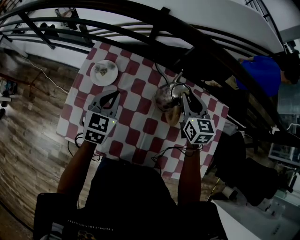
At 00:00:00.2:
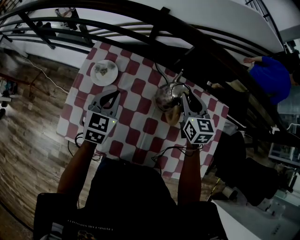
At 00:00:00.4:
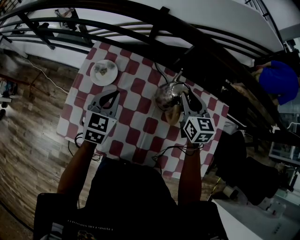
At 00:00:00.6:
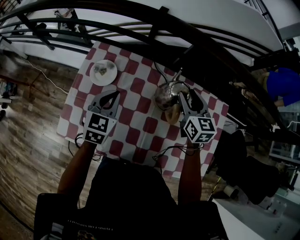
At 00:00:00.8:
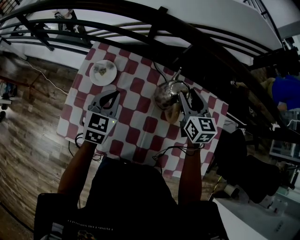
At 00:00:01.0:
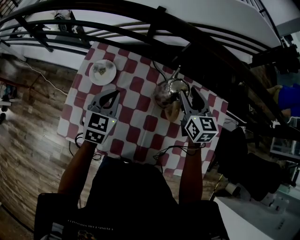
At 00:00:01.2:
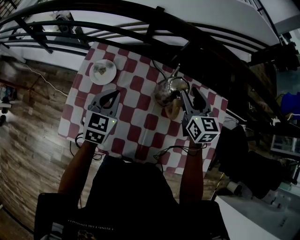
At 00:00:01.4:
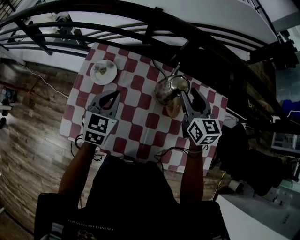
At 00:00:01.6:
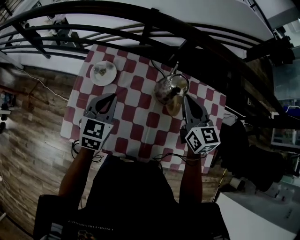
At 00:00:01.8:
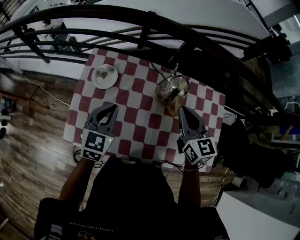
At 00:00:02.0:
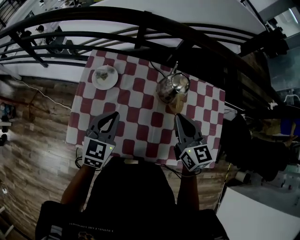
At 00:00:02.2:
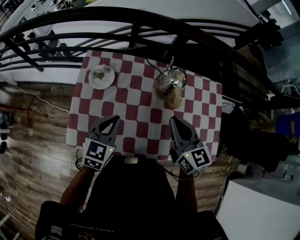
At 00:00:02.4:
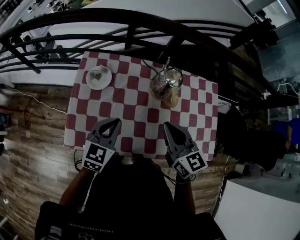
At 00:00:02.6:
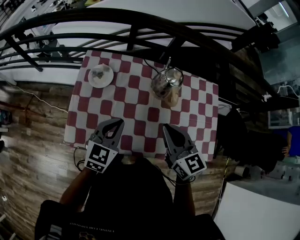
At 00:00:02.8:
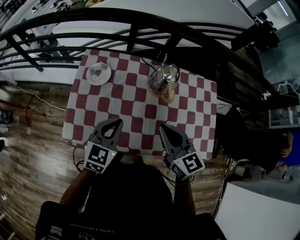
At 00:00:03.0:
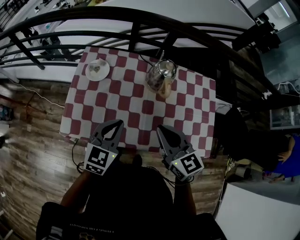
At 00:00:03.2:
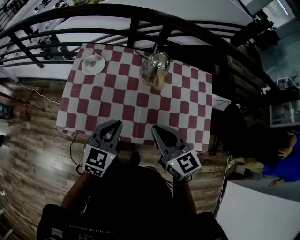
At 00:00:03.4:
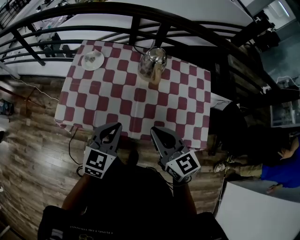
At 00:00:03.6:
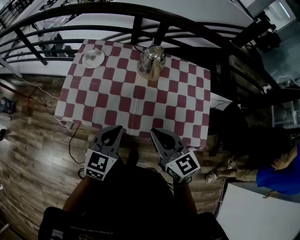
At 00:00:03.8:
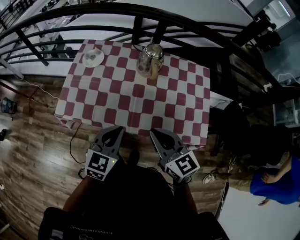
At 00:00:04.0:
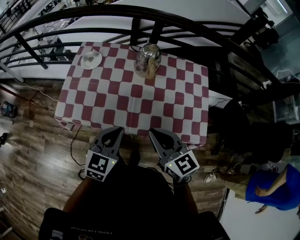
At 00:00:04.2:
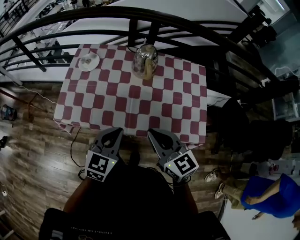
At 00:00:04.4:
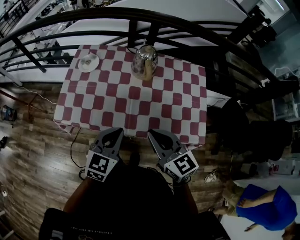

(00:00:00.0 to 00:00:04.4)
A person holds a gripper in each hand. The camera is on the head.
00:00:00.0 - 00:00:01.4: The right gripper ends up some 5 cm from where it was, and opens its fingers.
00:00:01.4 - 00:00:03.0: The grippers both shift backward by some 20 cm. The right gripper closes up.
00:00:03.0 - 00:00:04.4: Both grippers move backward and to the right, roughly 15 cm.

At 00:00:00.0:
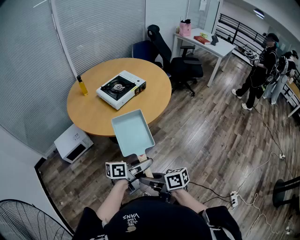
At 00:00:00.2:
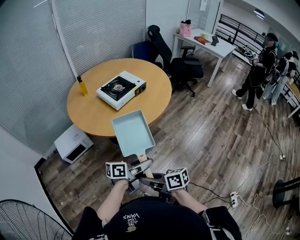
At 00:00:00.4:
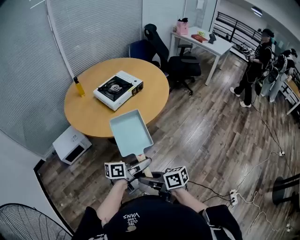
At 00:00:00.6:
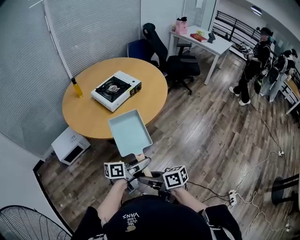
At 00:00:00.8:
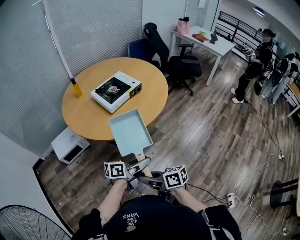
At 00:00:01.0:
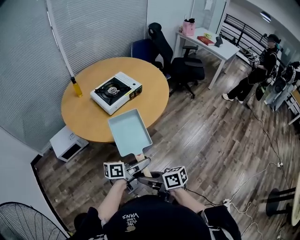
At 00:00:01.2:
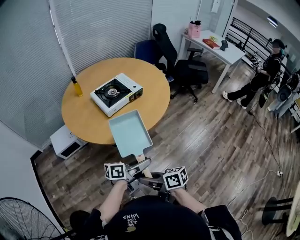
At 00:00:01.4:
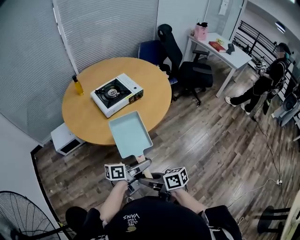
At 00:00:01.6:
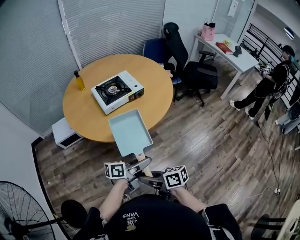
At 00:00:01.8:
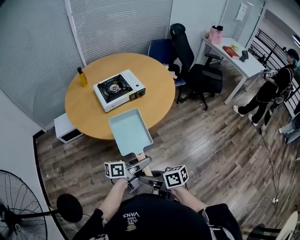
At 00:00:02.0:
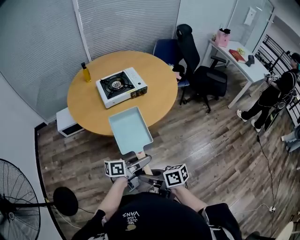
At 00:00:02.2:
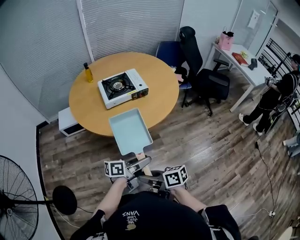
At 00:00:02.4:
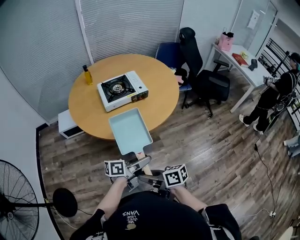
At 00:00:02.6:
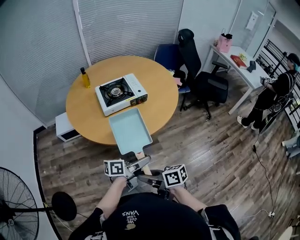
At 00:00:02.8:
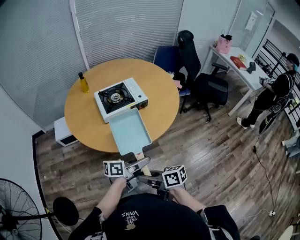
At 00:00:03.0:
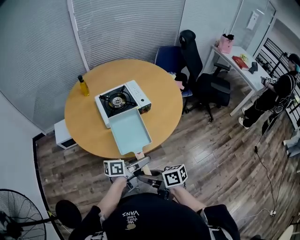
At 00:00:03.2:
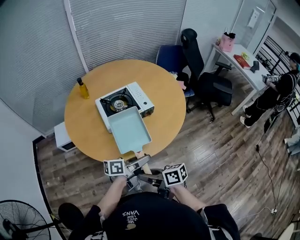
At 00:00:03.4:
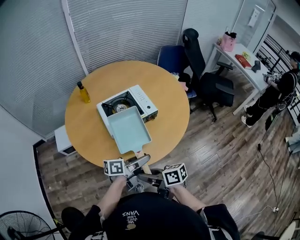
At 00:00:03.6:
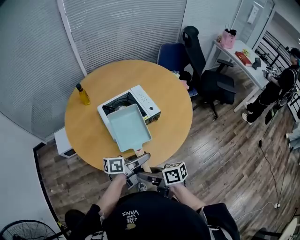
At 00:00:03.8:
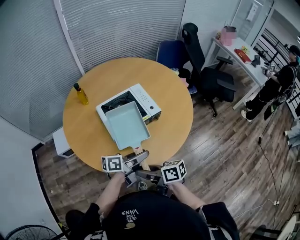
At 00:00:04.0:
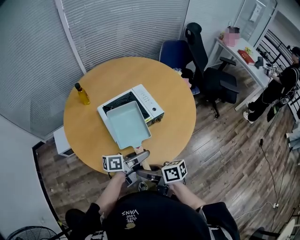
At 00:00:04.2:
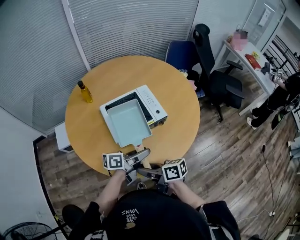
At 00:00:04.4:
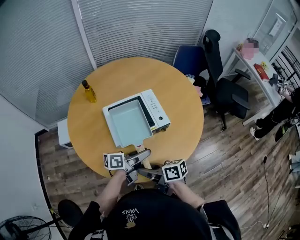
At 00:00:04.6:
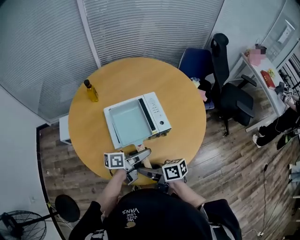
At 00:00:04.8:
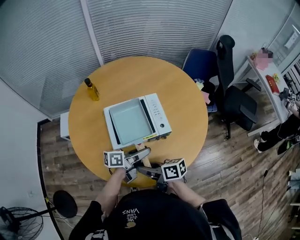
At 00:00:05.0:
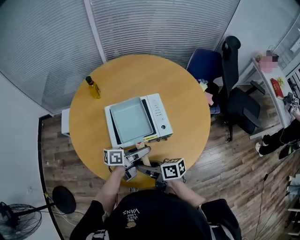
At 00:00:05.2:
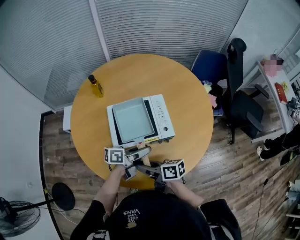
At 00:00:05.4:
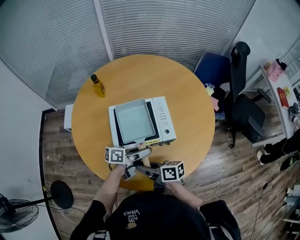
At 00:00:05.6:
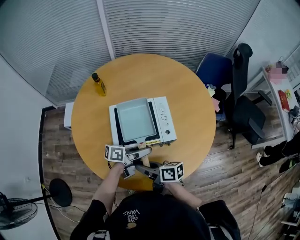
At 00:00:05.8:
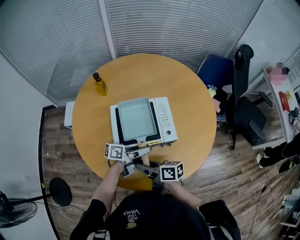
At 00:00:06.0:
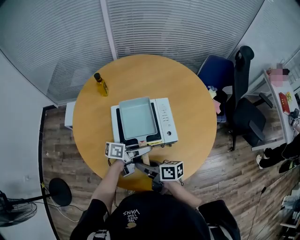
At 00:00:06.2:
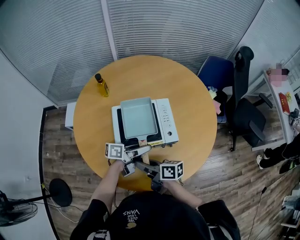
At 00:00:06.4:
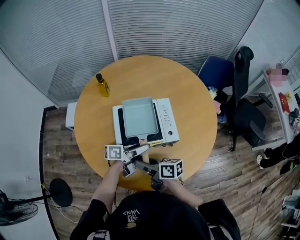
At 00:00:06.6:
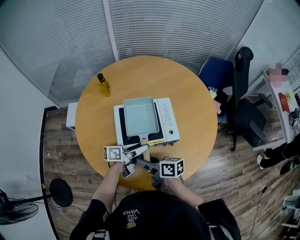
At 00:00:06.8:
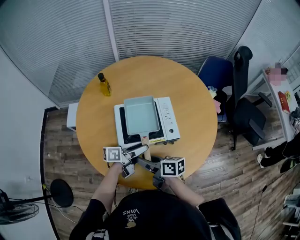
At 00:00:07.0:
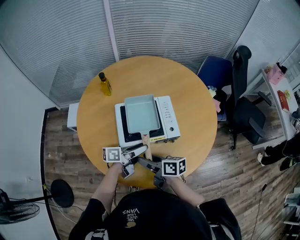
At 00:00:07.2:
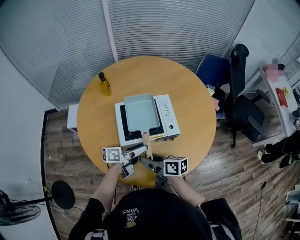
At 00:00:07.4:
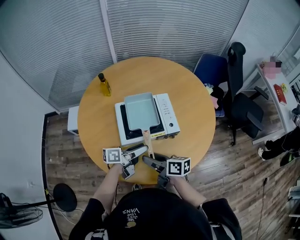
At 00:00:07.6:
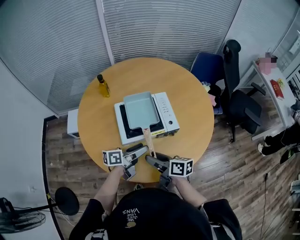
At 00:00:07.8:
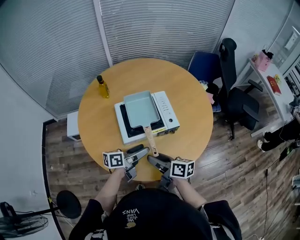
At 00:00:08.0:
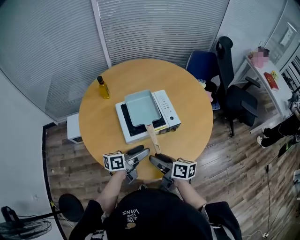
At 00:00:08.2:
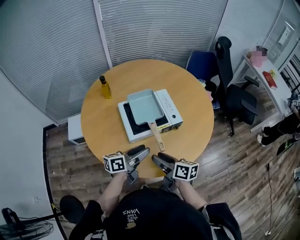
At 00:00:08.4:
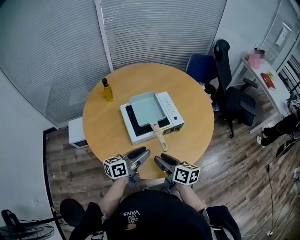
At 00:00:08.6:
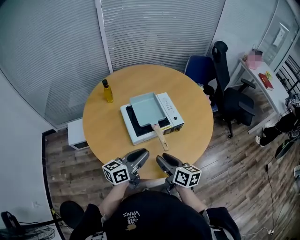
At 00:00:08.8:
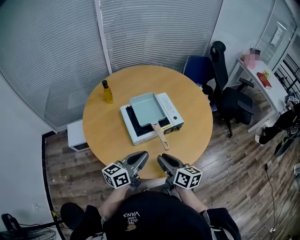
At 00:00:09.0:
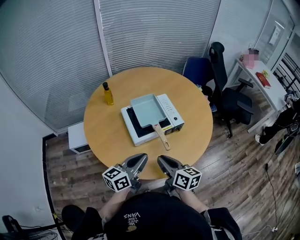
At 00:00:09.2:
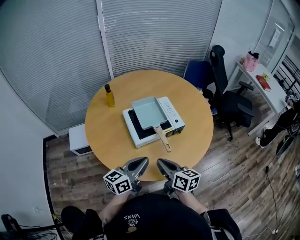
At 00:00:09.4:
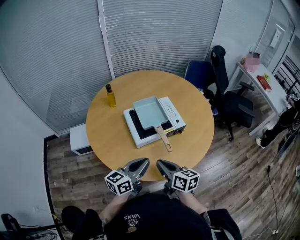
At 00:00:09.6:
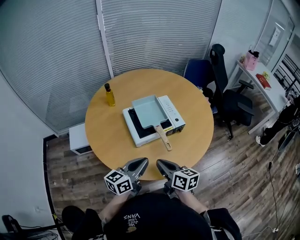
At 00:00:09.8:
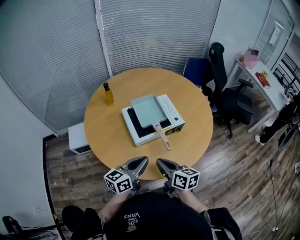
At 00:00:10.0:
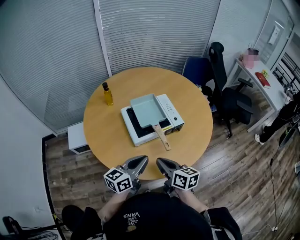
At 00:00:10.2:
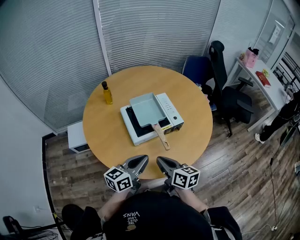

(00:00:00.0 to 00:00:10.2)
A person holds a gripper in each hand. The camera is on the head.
00:00:00.0 - 00:00:01.4: The left gripper shifts by some 15 cm; the right gripper ends up roughly 15 cm from where it was.
00:00:01.4 - 00:00:03.0: The right gripper moves approximately 15 cm. The left gripper changes place by about 15 cm.
00:00:03.0 - 00:00:04.4: The right gripper shifts by some 20 cm, while the left gripper ends up approximately 20 cm from where it was.
00:00:04.4 - 00:00:05.8: The left gripper ends up some 10 cm from where it was; the right gripper shifts by roughly 10 cm.
00:00:05.8 - 00:00:07.2: The left gripper shifts by about 5 cm.
00:00:07.2 - 00:00:08.8: The right gripper is displaced backward by roughly 5 cm, and rotates roughly 40 degrees, while the left gripper shifts roughly 15 cm backward, upward and to the left, swivels some 30 degrees, and closes.
00:00:08.8 - 00:00:10.2: The right gripper closes its fingers.

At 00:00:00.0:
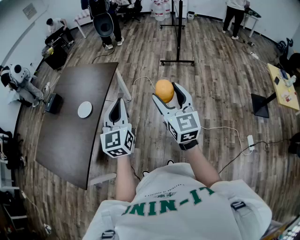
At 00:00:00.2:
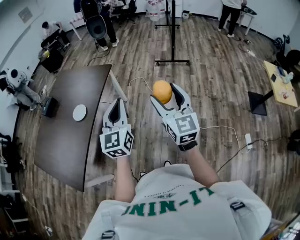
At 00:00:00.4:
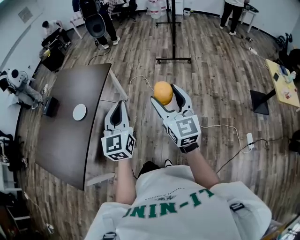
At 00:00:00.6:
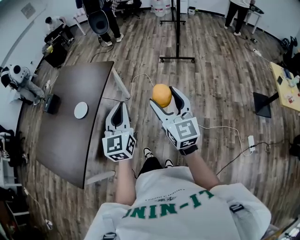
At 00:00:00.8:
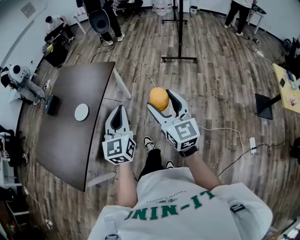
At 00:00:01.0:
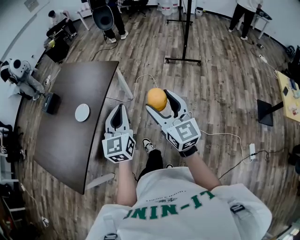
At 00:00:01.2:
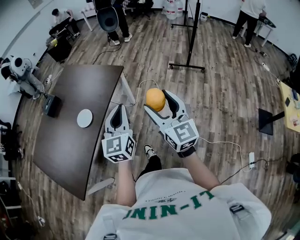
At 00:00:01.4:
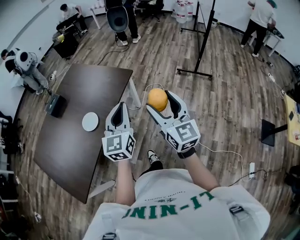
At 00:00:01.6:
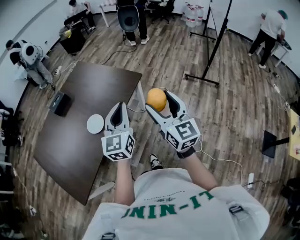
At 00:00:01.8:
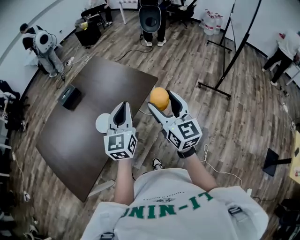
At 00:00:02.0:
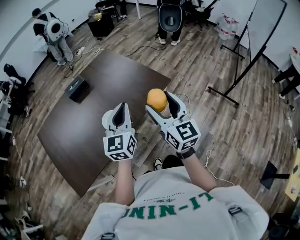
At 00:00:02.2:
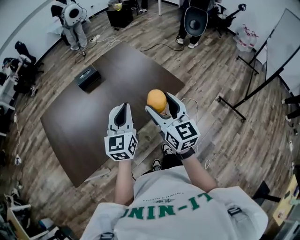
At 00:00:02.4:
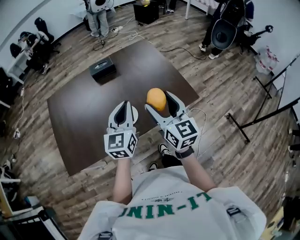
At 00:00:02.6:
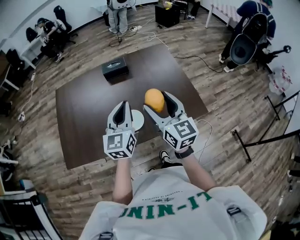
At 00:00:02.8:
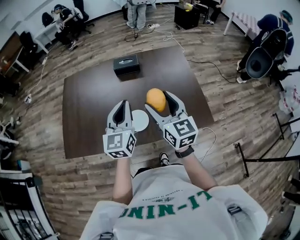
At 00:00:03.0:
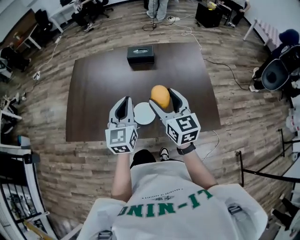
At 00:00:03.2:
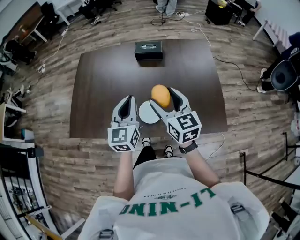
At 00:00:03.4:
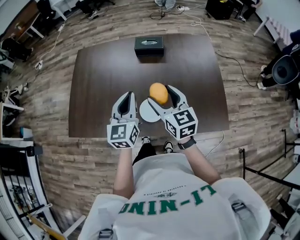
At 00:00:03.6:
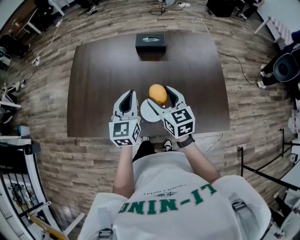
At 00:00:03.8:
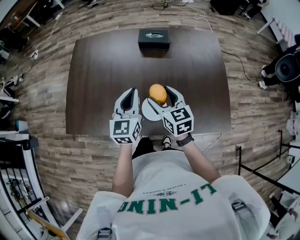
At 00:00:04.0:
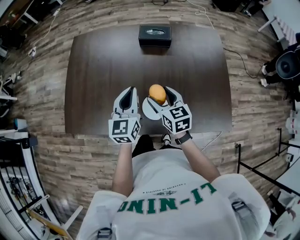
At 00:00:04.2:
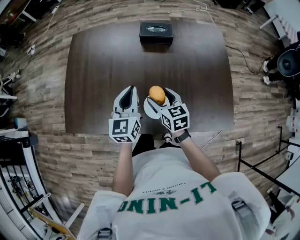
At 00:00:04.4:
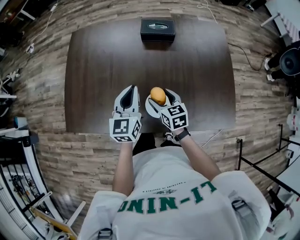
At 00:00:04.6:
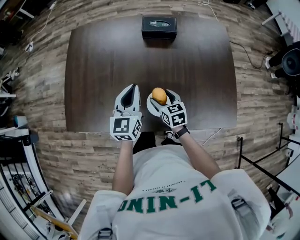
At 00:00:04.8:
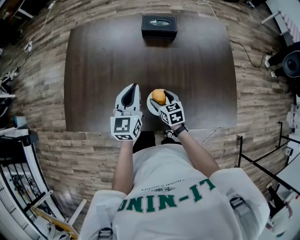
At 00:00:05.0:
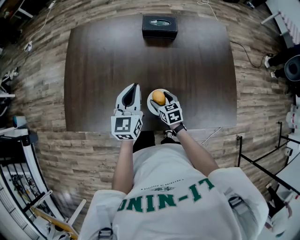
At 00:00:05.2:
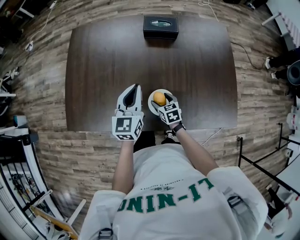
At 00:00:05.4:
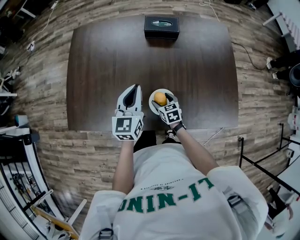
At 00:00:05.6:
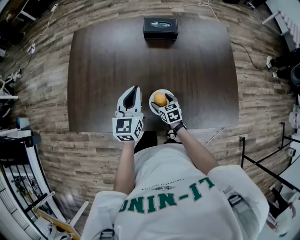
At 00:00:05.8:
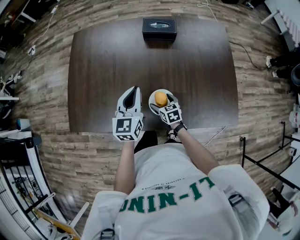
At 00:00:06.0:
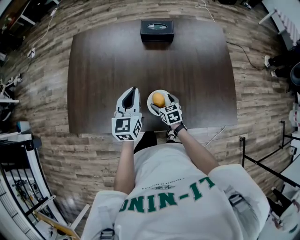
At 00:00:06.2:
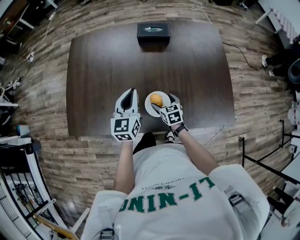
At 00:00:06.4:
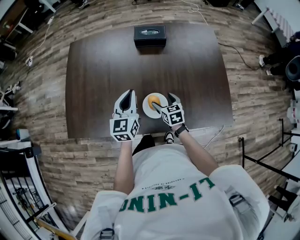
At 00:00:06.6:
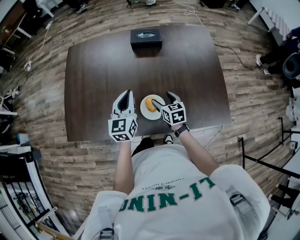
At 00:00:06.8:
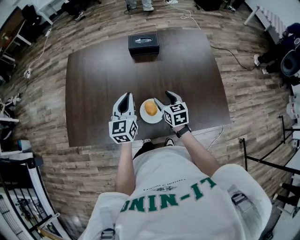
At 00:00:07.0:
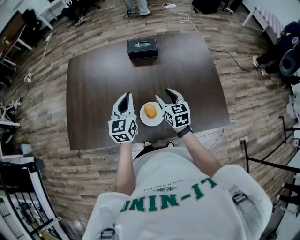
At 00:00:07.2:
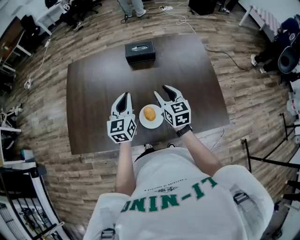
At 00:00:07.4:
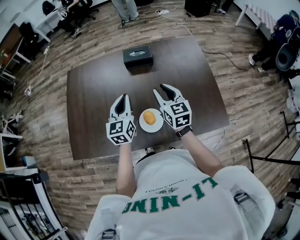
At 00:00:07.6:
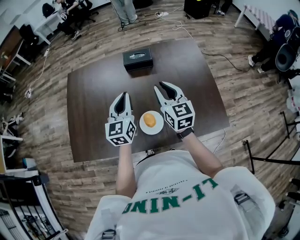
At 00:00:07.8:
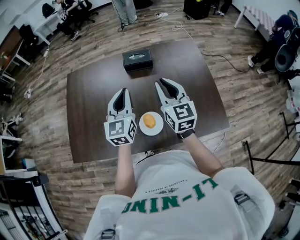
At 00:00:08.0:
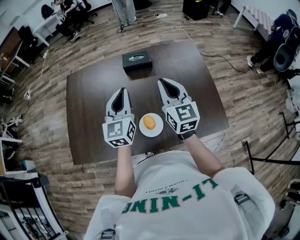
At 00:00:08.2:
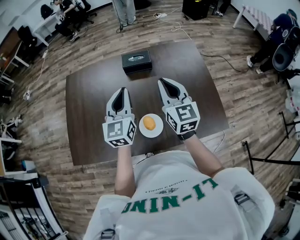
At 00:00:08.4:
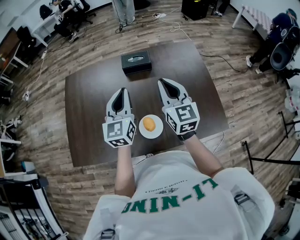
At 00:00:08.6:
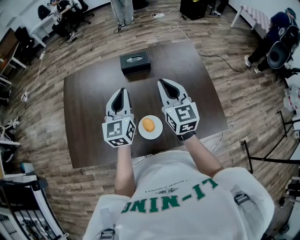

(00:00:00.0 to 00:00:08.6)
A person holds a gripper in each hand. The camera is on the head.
00:00:00.0 - 00:00:01.4: Both grippers travel together forward, about 20 cm.
00:00:01.4 - 00:00:02.8: The pair of grippers is taken some 50 cm. The right gripper turns by roughly 60 degrees, while the left gripper changes its angle by roughly 50 degrees.
00:00:02.8 - 00:00:04.4: The grippers both shift downward, forward and to the left by roughly 30 cm. The right gripper changes its angle by some 30 degrees.
00:00:04.4 - 00:00:05.8: The right gripper travels downward by approximately 15 cm.
00:00:05.8 - 00:00:07.2: The left gripper changes place by approximately 5 cm, while the right gripper is displaced upward by approximately 25 cm, rotates some 30 degrees, and closes up.
00:00:07.2 - 00:00:08.6: The left gripper travels upward by some 10 cm, while the right gripper travels upward by some 15 cm, and closes its fingers.
